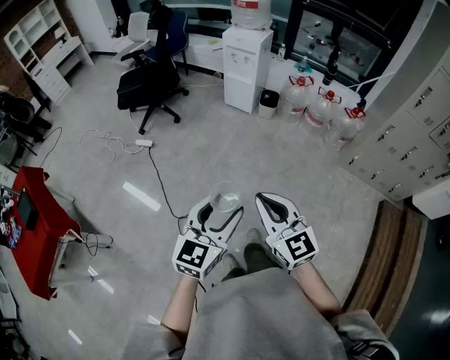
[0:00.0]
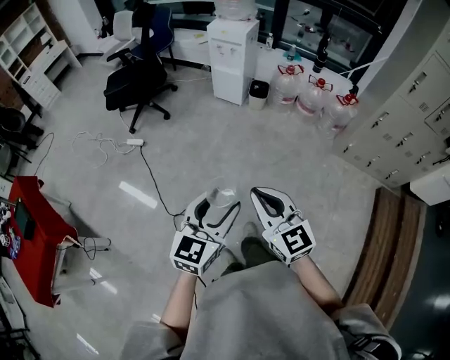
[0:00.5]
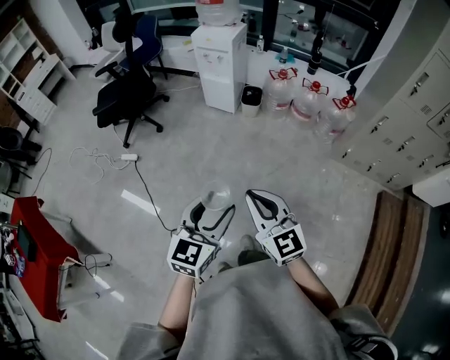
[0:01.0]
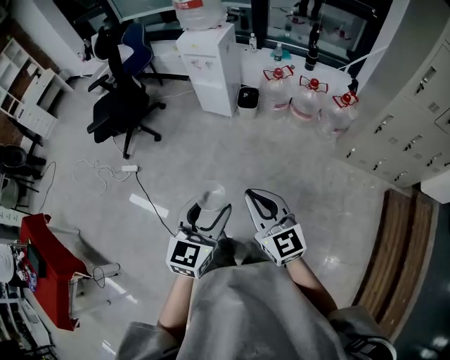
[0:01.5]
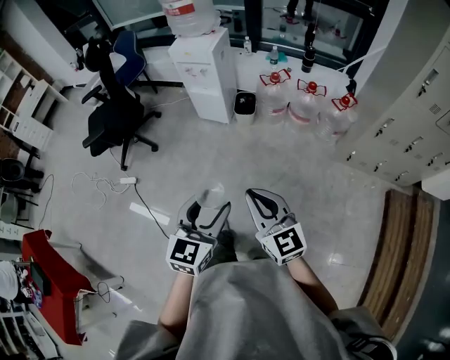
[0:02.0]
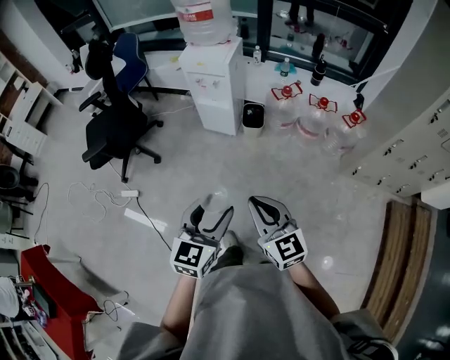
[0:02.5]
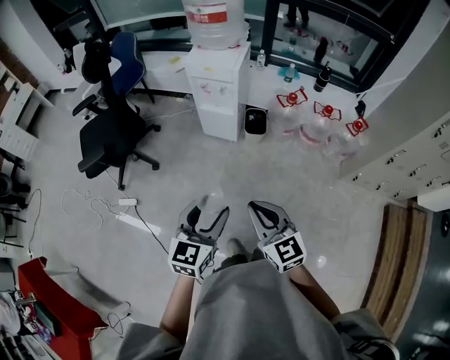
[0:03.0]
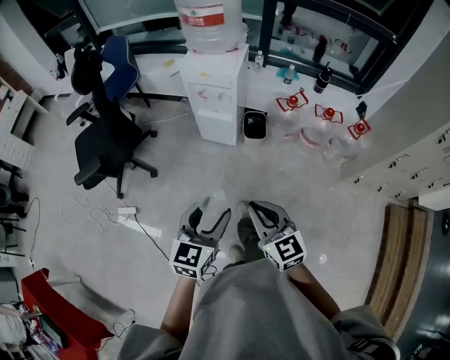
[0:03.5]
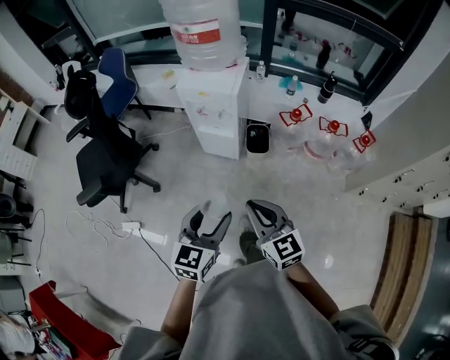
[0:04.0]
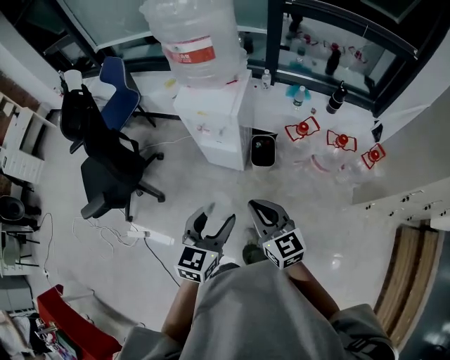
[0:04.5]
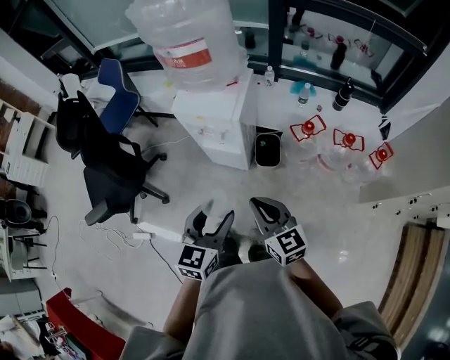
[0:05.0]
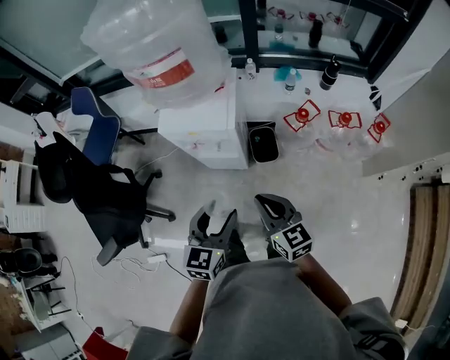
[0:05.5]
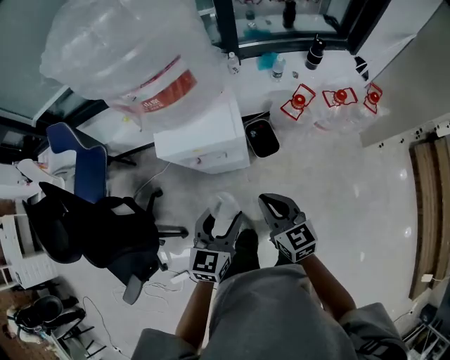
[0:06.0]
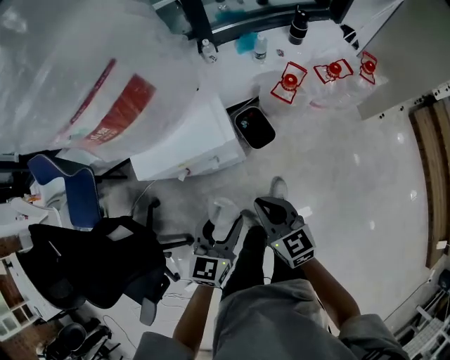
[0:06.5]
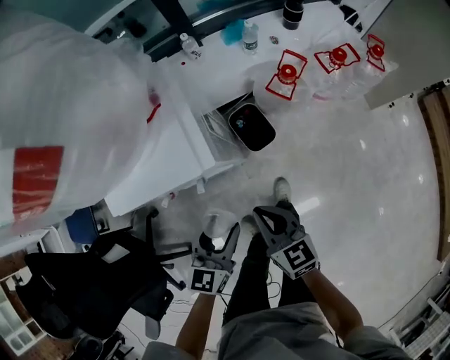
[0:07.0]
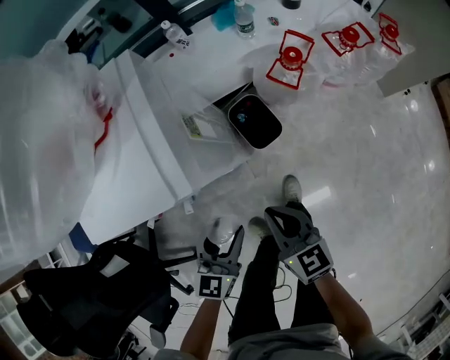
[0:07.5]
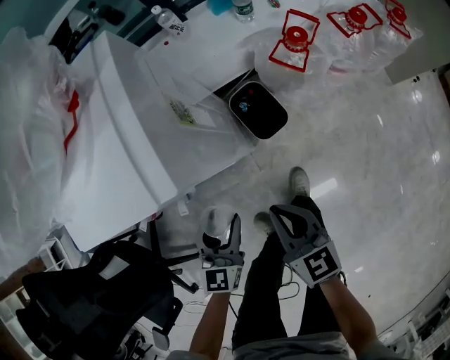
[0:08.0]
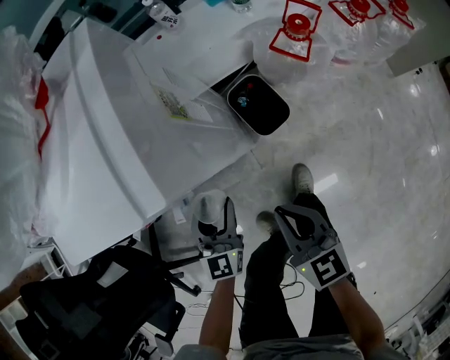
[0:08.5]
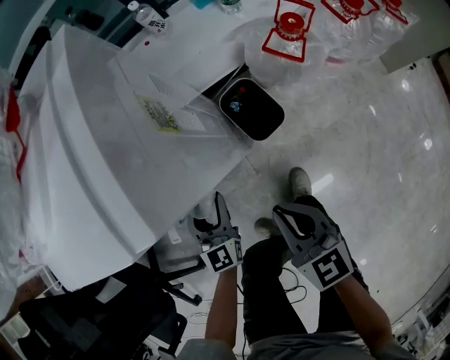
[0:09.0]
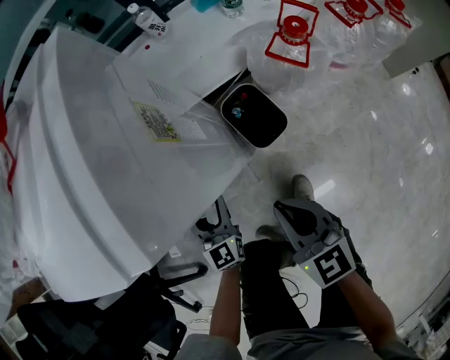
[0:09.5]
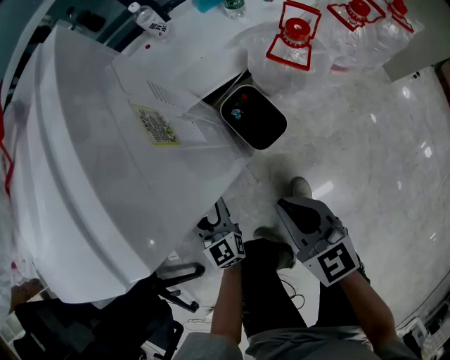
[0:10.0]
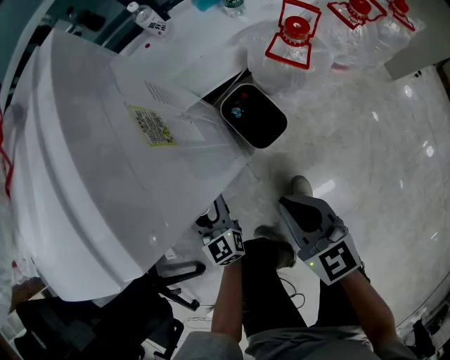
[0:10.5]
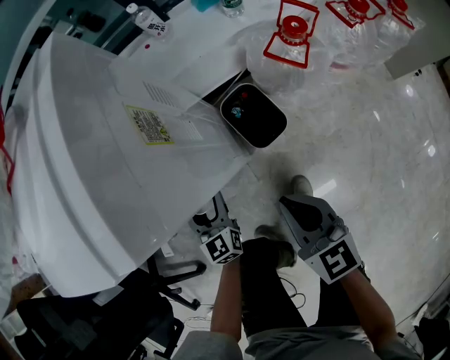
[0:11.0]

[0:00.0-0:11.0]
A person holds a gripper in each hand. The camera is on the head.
0.0 to 2.0 s: The two grippers go roughly 30 cm forward and to the right.
2.0 to 3.5 s: The grippers both shift forward and to the left by about 30 cm.
3.5 to 5.5 s: Both grippers move forward, roughly 35 cm.
5.5 to 7.5 s: The two grippers go some 30 cm downward and forward. The left gripper rotates some 20 degrees; the right gripper turns by roughly 30 degrees.
7.5 to 9.0 s: The left gripper shifts roughly 20 cm downward, forward and to the left, and turns by some 20 degrees. Meanwhile the right gripper heads downward, covering approximately 5 cm.
9.0 to 11.0 s: The left gripper heads downward, covering roughly 5 cm.

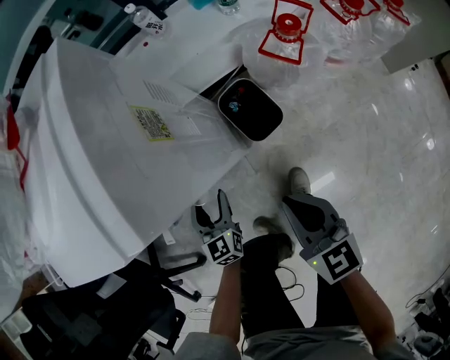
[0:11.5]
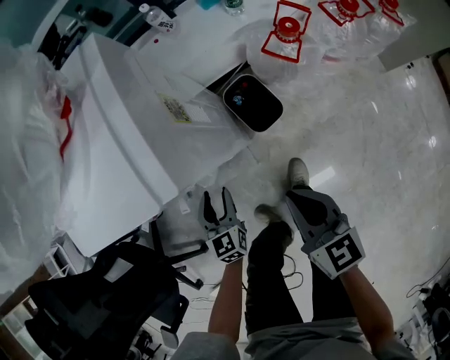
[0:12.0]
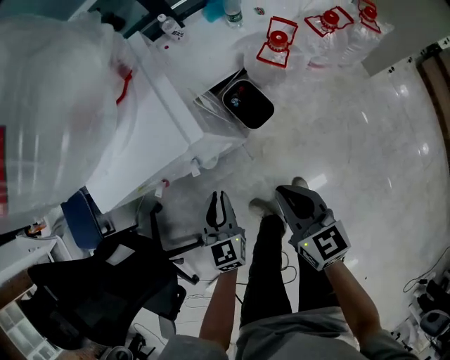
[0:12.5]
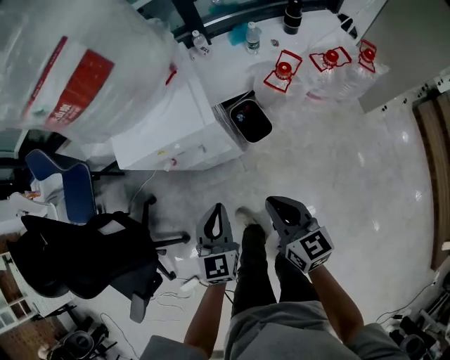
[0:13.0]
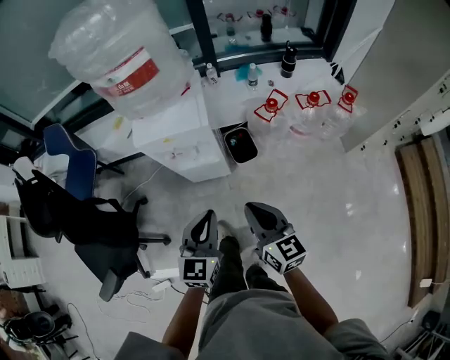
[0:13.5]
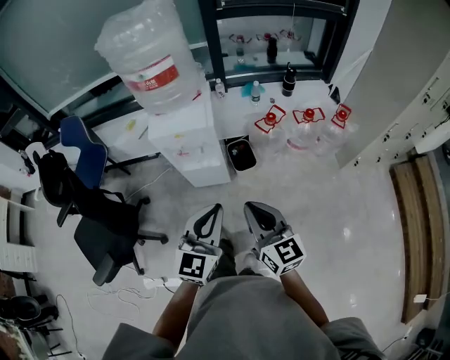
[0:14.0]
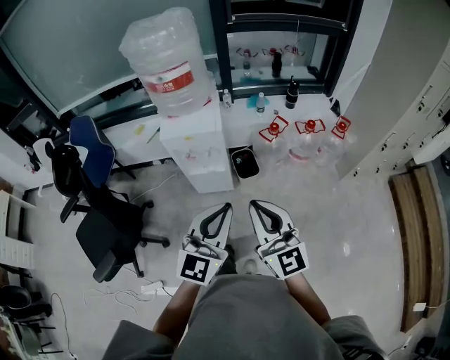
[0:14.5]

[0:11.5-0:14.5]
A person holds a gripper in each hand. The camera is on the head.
11.5 to 13.0 s: The two grippers go some 30 cm upward and backward. The left gripper closes.
13.0 to 14.5 s: Both grippers move upward and backward, approximately 40 cm. The left gripper swivels approximately 30 degrees; the right gripper rotates roughly 40 degrees.

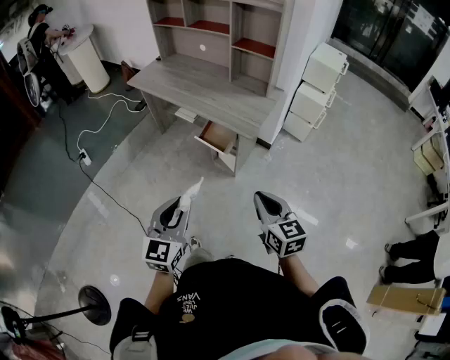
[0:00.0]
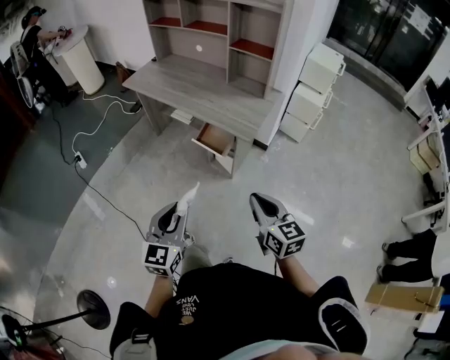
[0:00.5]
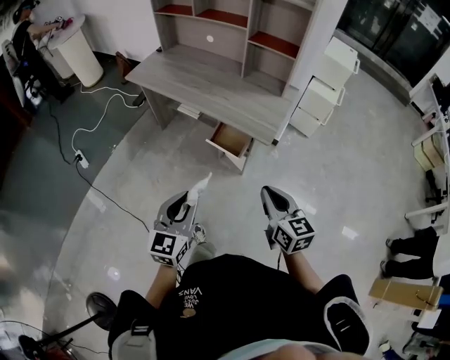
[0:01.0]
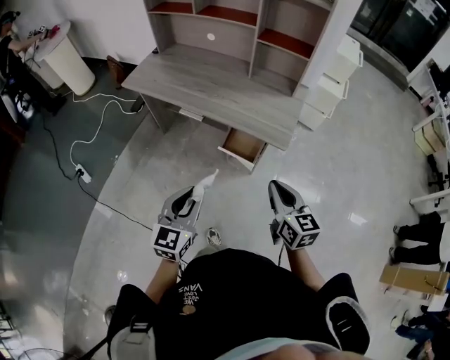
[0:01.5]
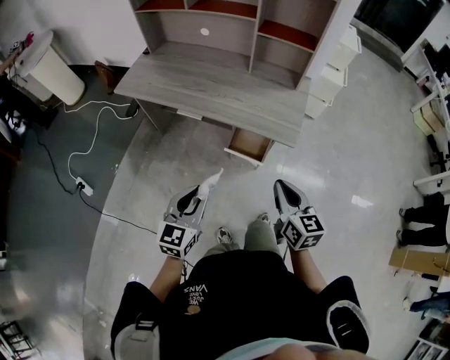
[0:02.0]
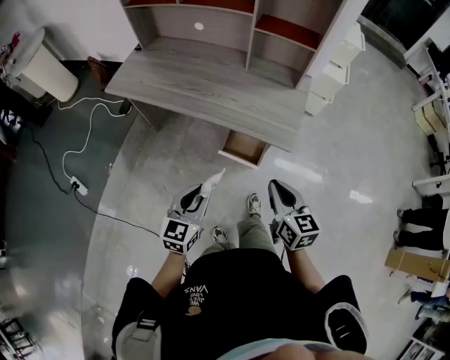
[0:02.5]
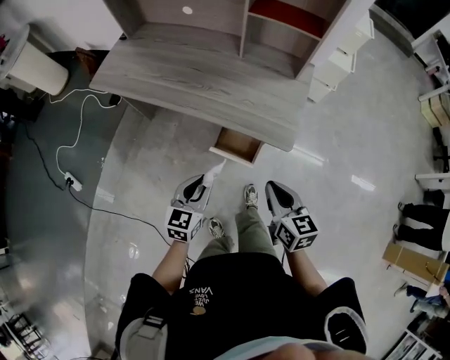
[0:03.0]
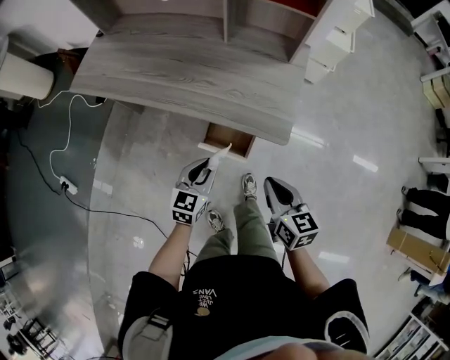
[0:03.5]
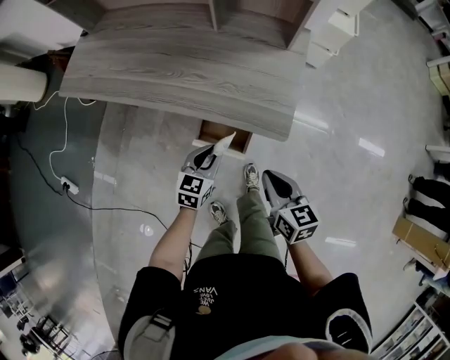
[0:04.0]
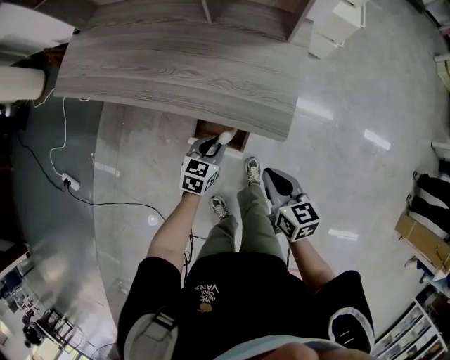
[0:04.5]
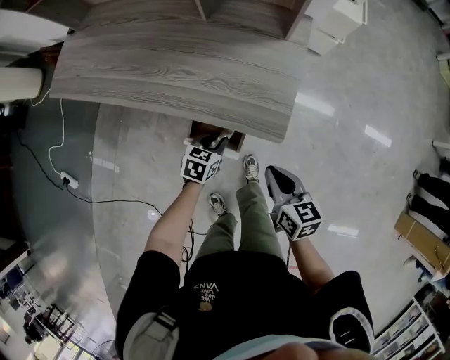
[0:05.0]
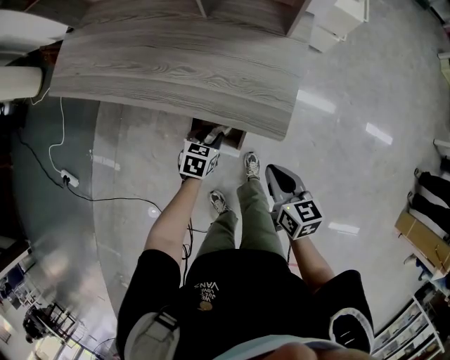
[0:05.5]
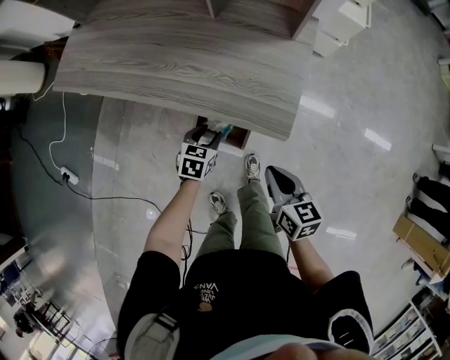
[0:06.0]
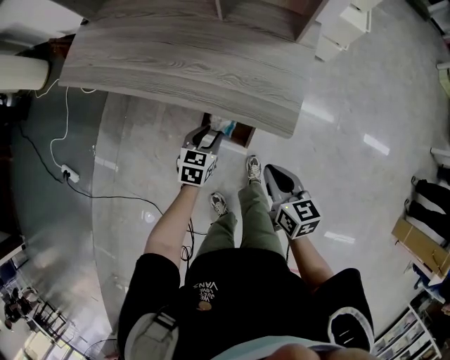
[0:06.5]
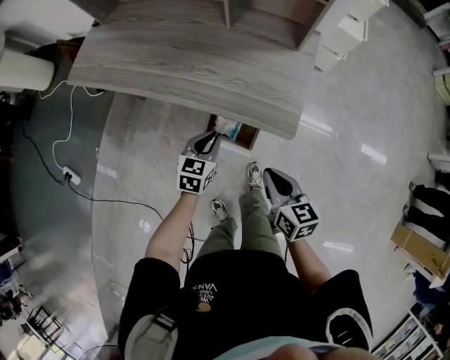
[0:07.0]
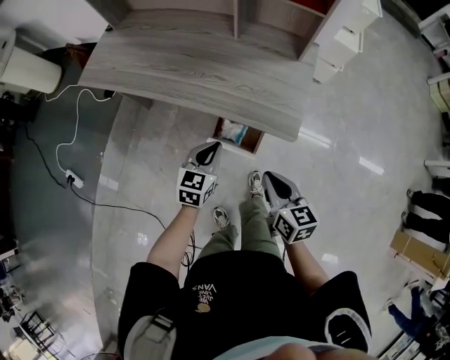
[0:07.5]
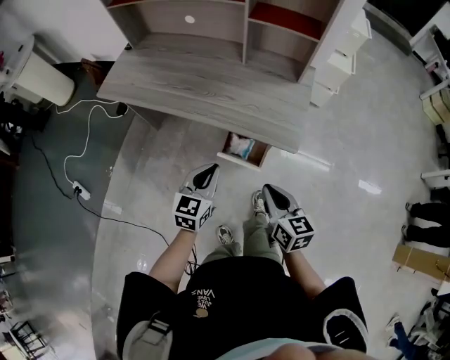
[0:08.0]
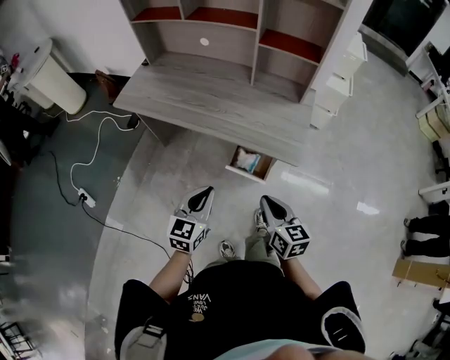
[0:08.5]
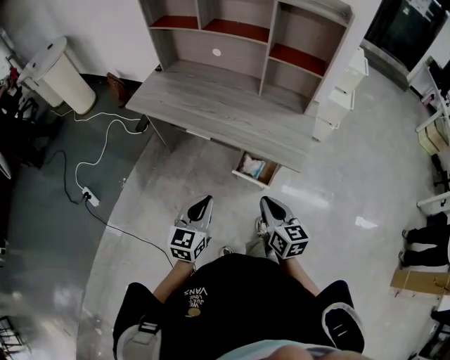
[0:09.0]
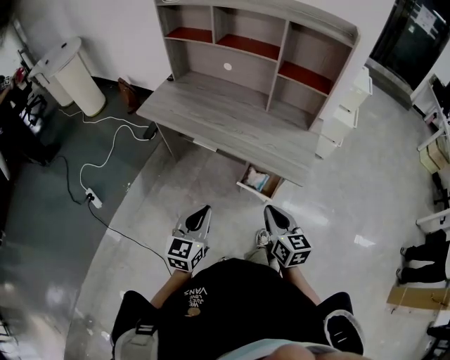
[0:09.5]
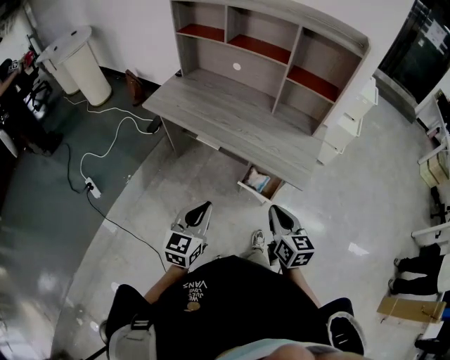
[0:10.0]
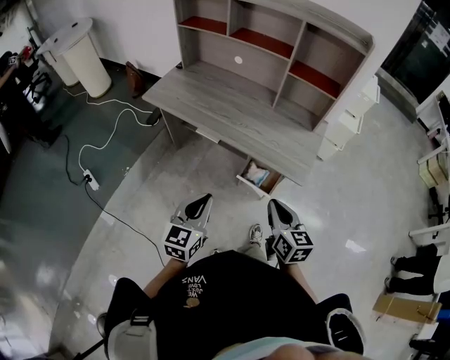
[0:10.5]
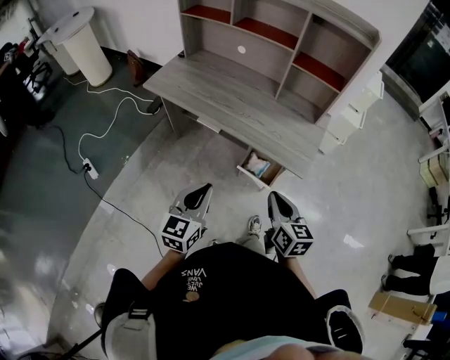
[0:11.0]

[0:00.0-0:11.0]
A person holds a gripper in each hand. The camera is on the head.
0.0 to 2.0 s: The two grippers go approximately 30 cm forward and to the left. The left gripper rotates some 20 degrees. The right gripper turns by about 20 degrees.
2.0 to 3.5 s: The left gripper travels downward, forward and to the right by some 25 cm. The right gripper is displaced downward and forward by roughly 15 cm.
3.5 to 5.5 s: The left gripper moves downward and forward, about 15 cm, and turns by about 30 degrees; the right gripper goes roughly 10 cm downward.
5.5 to 7.5 s: The left gripper travels upward by approximately 15 cm, changes its angle by approximately 30 degrees, and closes up; the right gripper goes approximately 10 cm to the left and upward.
7.5 to 9.0 s: The right gripper heads to the left, upward and backward, covering approximately 15 cm. The left gripper travels backward, upward and to the left by about 25 cm.
9.0 to 11.0 s: The left gripper moves upward, roughly 5 cm.

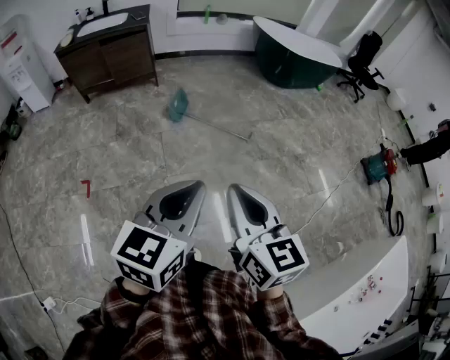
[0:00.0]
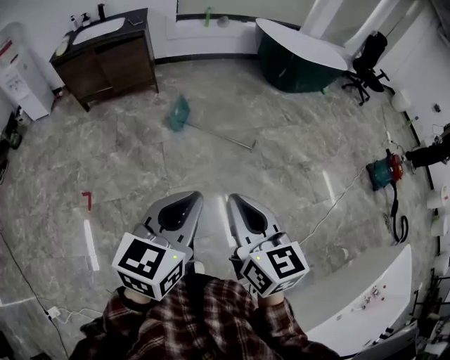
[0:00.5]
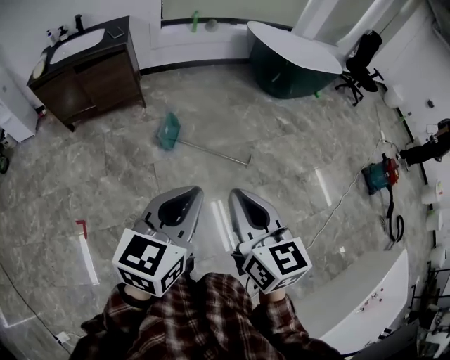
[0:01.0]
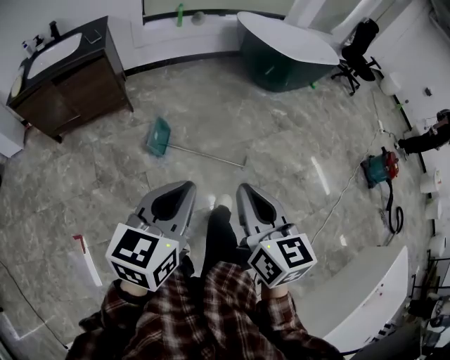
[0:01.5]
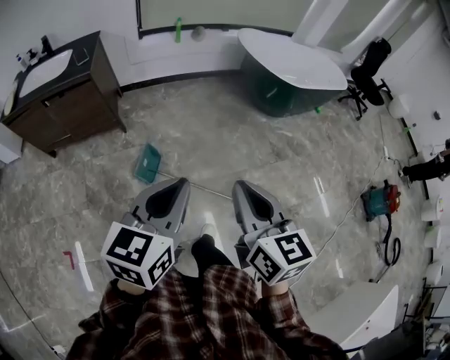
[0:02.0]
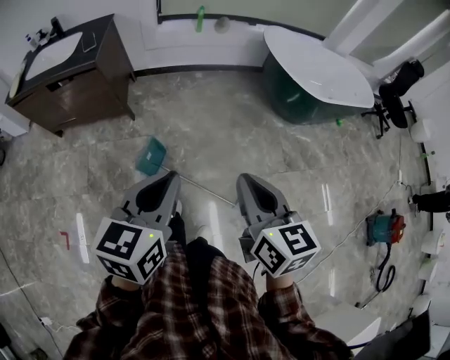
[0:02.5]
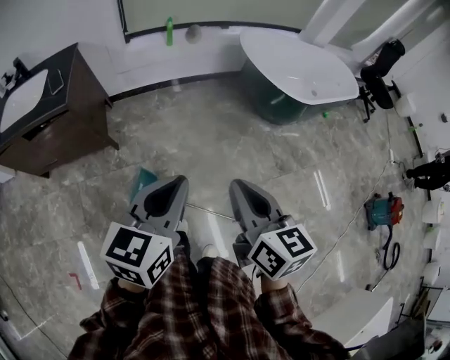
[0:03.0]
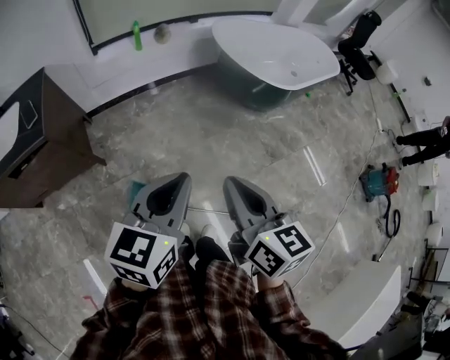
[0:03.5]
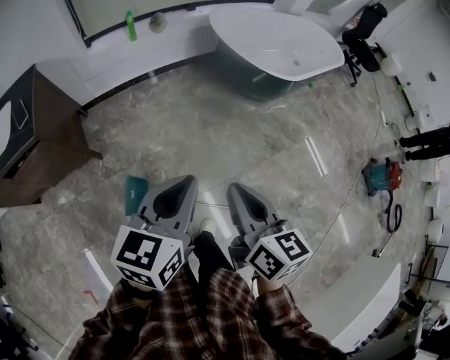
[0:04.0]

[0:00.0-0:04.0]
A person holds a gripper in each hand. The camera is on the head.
0.0 to 2.0 s: The two grippers travel together, forward, some 60 cm.
2.0 to 4.0 s: The two grippers go some 35 cm forward.
